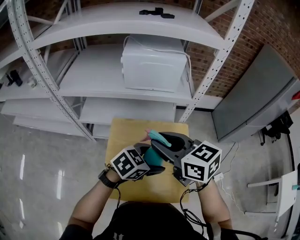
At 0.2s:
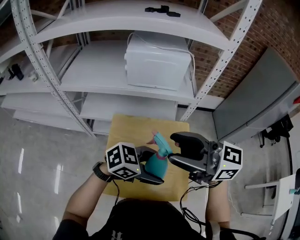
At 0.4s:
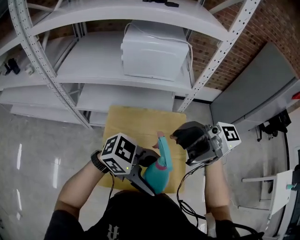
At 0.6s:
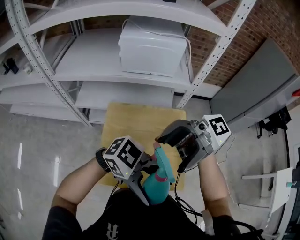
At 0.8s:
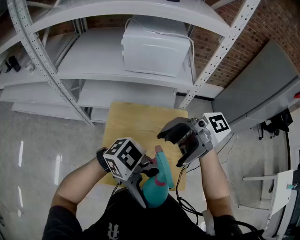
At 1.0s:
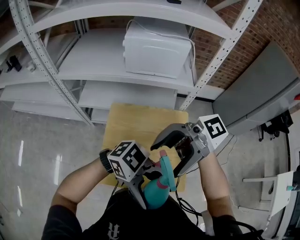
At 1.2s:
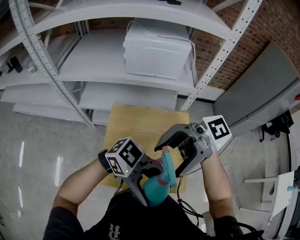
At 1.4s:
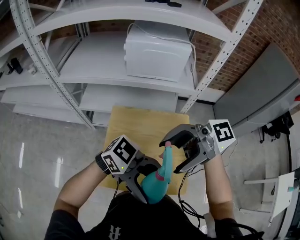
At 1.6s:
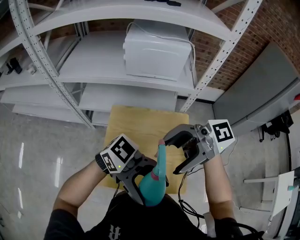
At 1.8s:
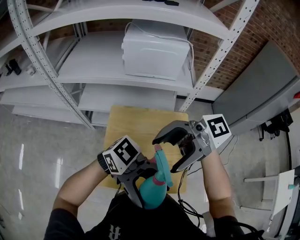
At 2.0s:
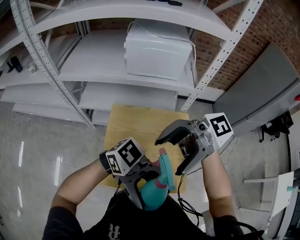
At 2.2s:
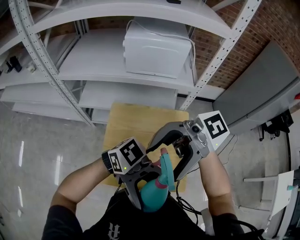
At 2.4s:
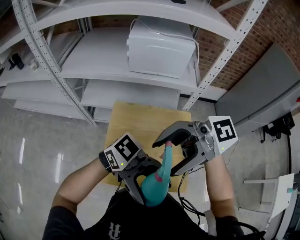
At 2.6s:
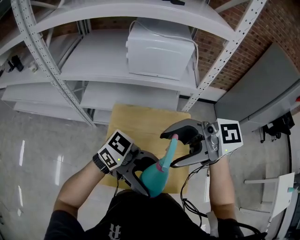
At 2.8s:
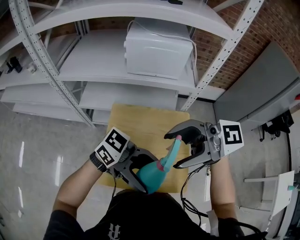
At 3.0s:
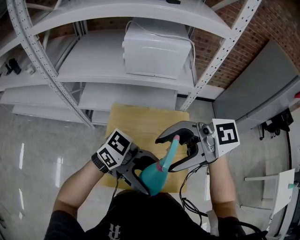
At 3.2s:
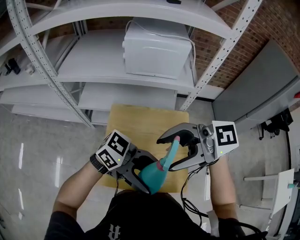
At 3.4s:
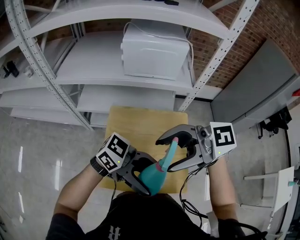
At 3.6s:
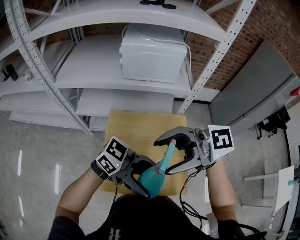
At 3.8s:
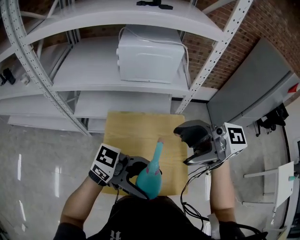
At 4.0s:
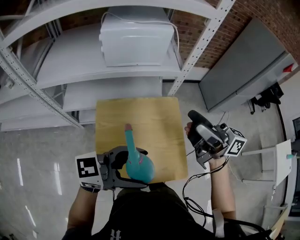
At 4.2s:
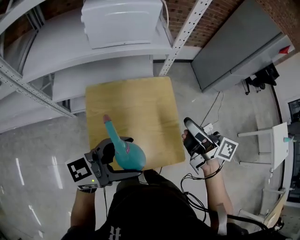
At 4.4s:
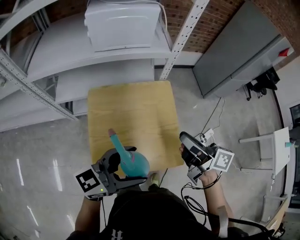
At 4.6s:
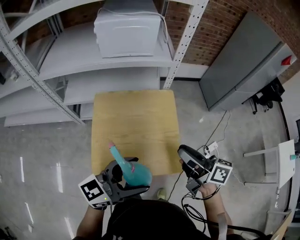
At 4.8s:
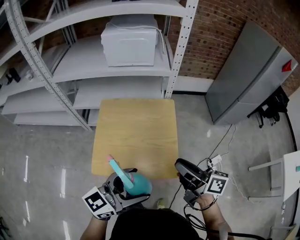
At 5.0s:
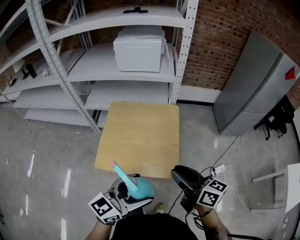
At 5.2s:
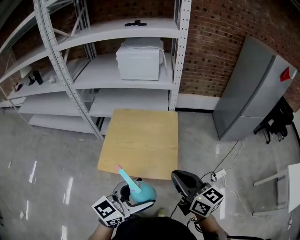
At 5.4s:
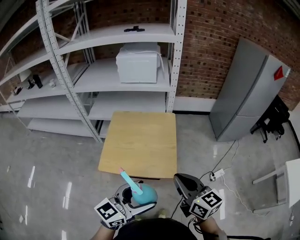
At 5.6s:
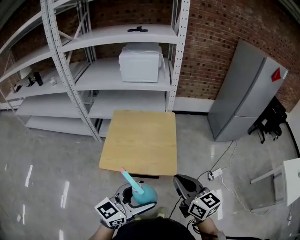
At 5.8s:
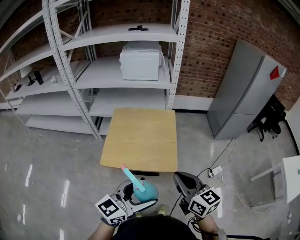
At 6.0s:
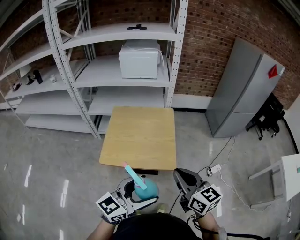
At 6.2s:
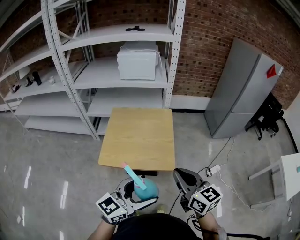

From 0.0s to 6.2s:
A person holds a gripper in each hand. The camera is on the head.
From 0.0s to 1.6s: The right gripper changes place by approximately 15 cm, rotates approximately 70 degrees, and opens up, while the left gripper changes place by approximately 20 cm, and tips its fingers upward by approximately 40 degrees.
From 1.6s to 3.2s: The left gripper moves approximately 5 cm.
From 3.2s to 4.6s: The left gripper shifts by some 5 cm, and turns by about 50 degrees; the right gripper ends up some 25 cm from where it was, rotates roughly 80 degrees, and closes.
From 4.6s to 6.2s: The left gripper shifts approximately 30 cm backward and to the right, while the right gripper heads backward, covering about 25 cm, swivels about 40 degrees, and closes its fingers.

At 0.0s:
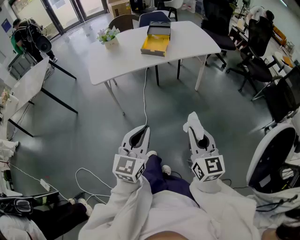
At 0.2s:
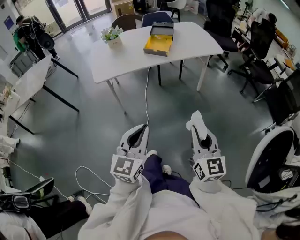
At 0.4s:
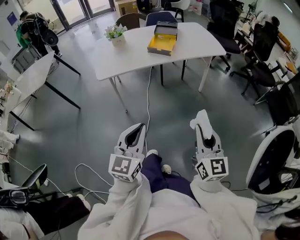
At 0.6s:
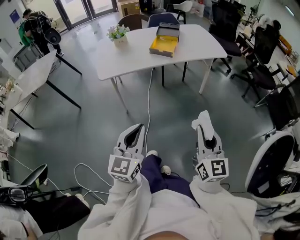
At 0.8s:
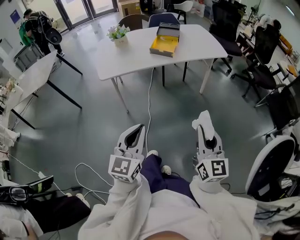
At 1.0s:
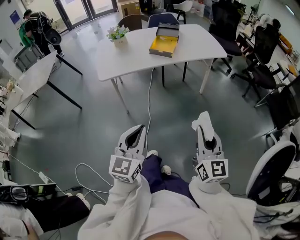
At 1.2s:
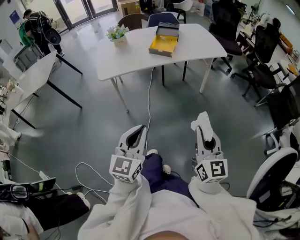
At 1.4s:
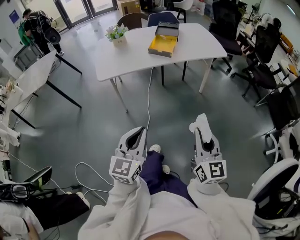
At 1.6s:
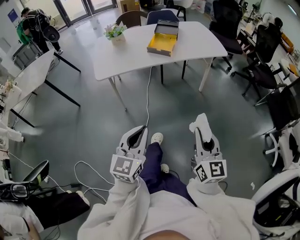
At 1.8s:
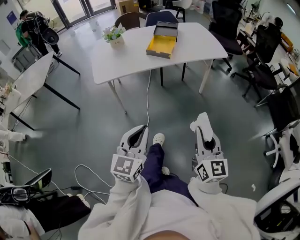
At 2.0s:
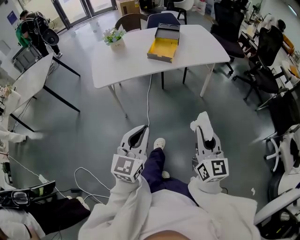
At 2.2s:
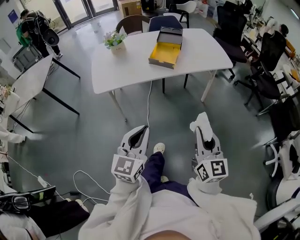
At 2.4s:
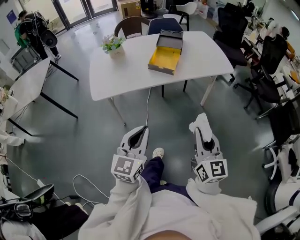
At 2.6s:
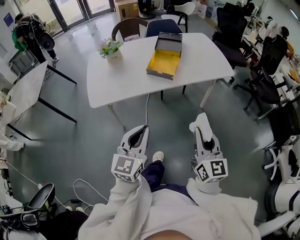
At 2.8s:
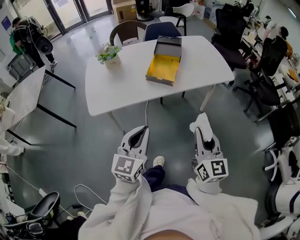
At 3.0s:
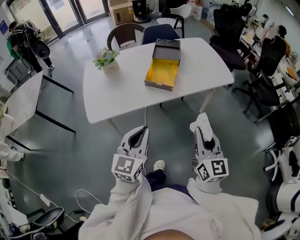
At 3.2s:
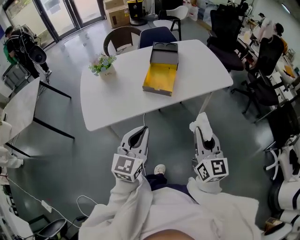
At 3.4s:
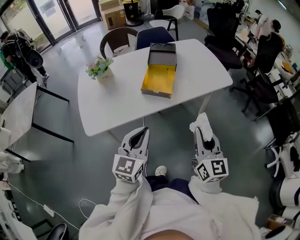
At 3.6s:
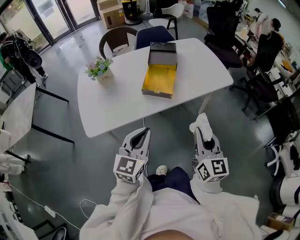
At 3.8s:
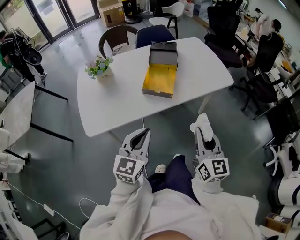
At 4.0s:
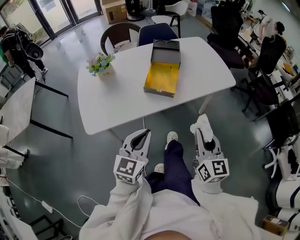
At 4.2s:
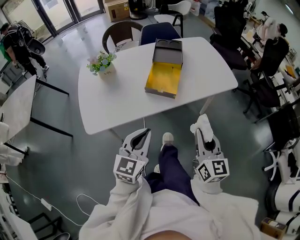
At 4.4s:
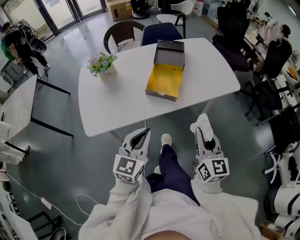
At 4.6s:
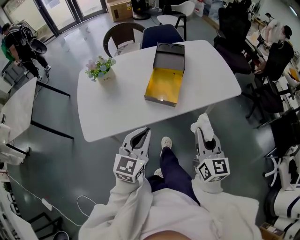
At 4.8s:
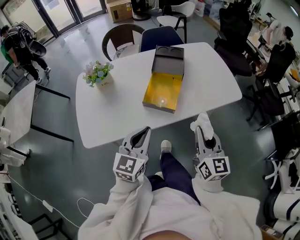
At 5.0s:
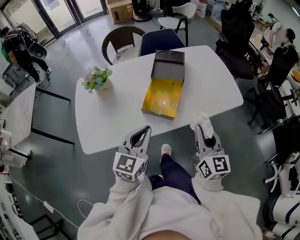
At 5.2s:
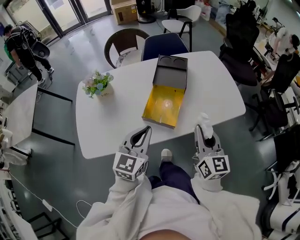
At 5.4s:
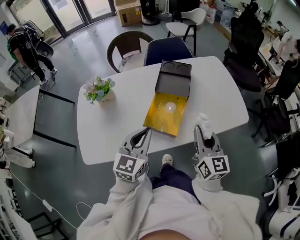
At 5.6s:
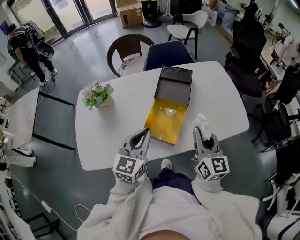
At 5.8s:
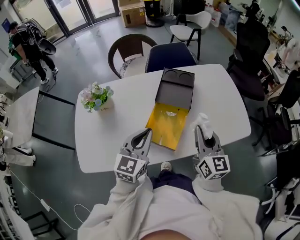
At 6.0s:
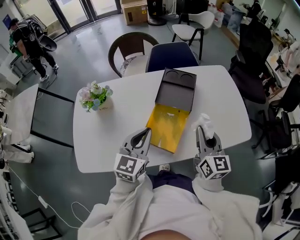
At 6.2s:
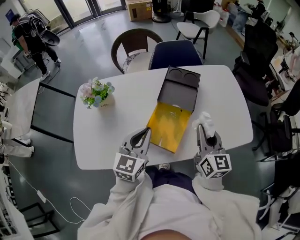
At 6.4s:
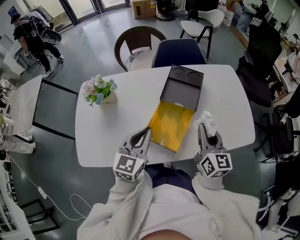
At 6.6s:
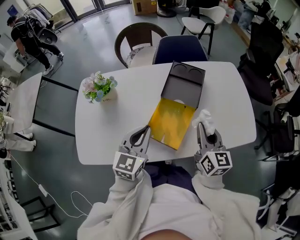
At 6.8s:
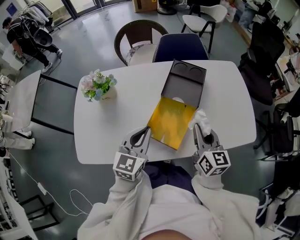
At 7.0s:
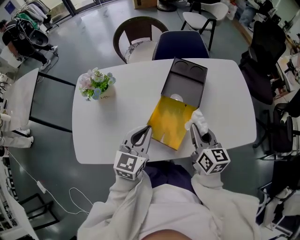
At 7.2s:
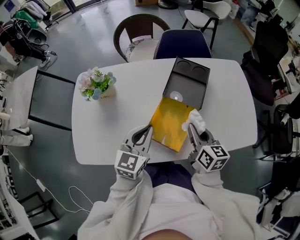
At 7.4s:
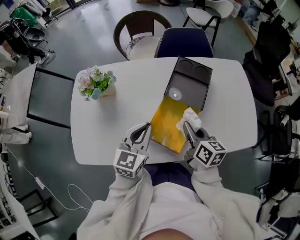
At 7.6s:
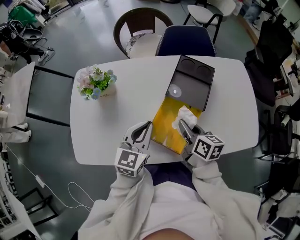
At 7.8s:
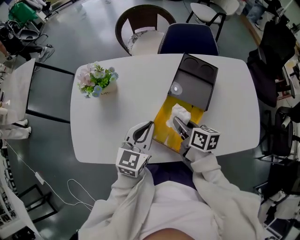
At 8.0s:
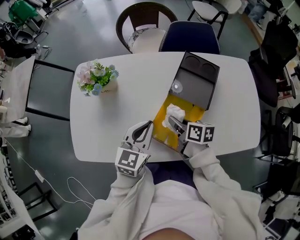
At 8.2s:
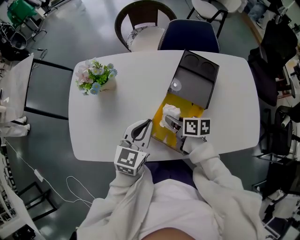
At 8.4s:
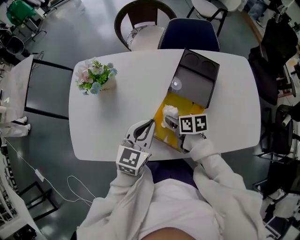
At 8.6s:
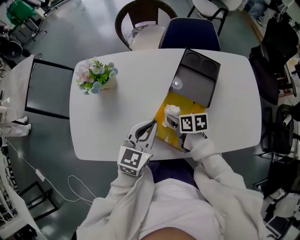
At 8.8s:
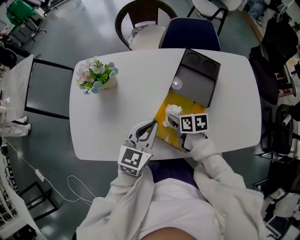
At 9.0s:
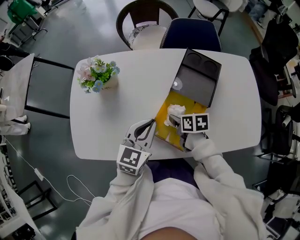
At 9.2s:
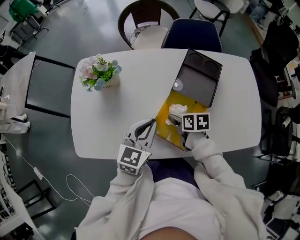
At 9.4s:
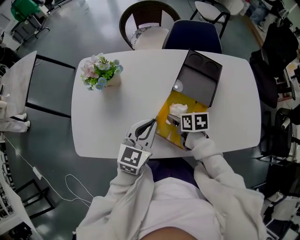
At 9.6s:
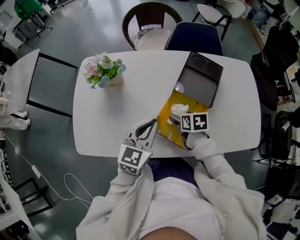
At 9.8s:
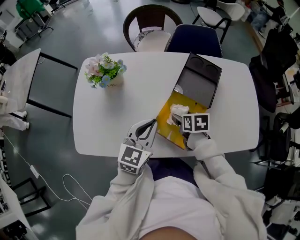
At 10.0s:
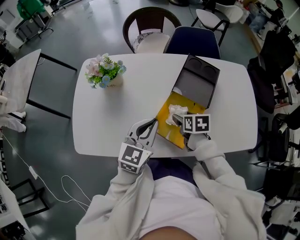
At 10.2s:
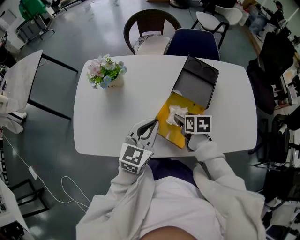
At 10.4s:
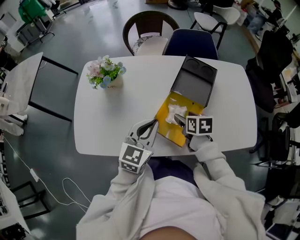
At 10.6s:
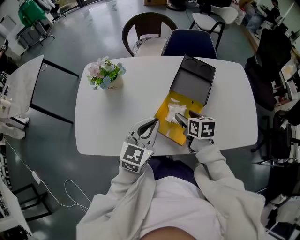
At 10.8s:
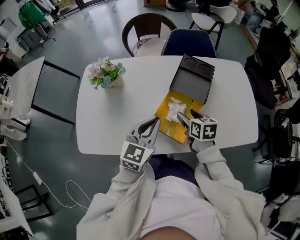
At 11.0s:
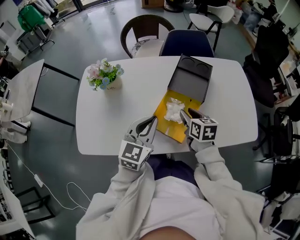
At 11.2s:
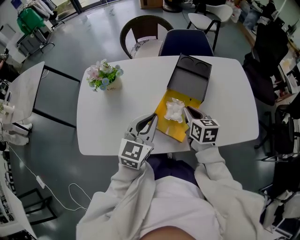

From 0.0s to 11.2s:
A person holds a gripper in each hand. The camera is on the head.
From 0.0s to 1.6s: The grippers stay close to where they were, moving slightly.
From 1.6s to 3.2s: Both grippers move forward, roughly 30 cm.
From 3.2s to 4.8s: The grippers both shift forward by roughly 15 cm.
From 4.8s to 6.4s: Both grippers travel together forward, approximately 20 cm.
From 6.4s to 8.0s: The right gripper heads downward, to the left and forward, covering approximately 20 cm, and swivels about 50 degrees. Meanwhile the left gripper travels downward by some 5 cm.
From 8.0s to 9.6s: The right gripper rotates roughly 30 degrees, and opens.
From 9.6s to 11.2s: The right gripper shifts about 10 cm upward, turns by roughly 30 degrees, and closes up.

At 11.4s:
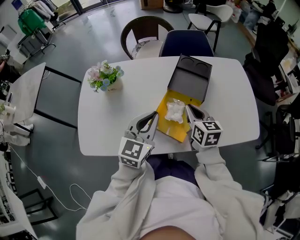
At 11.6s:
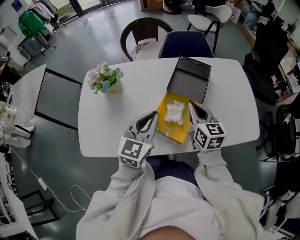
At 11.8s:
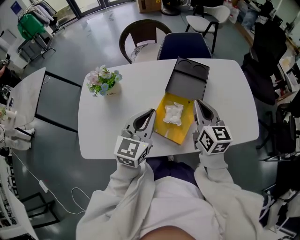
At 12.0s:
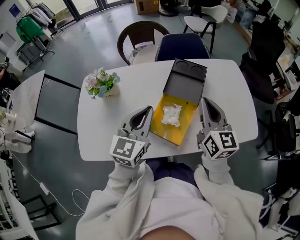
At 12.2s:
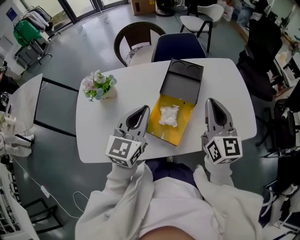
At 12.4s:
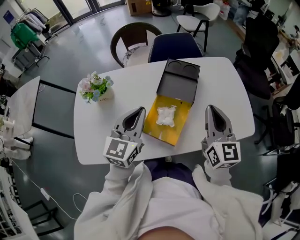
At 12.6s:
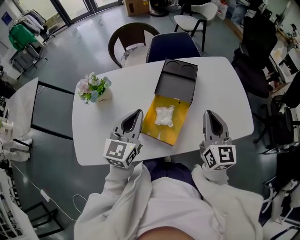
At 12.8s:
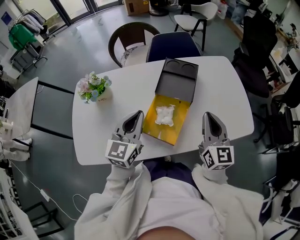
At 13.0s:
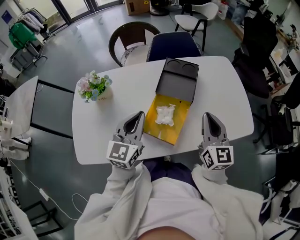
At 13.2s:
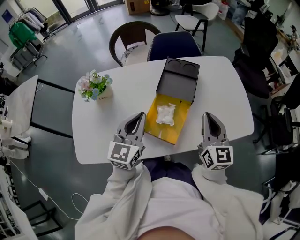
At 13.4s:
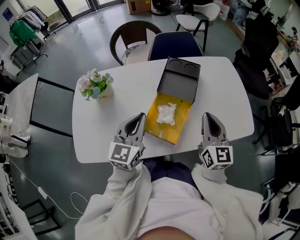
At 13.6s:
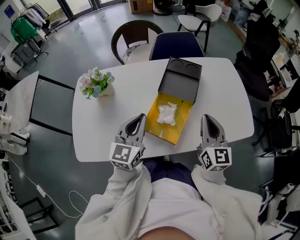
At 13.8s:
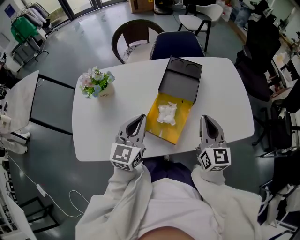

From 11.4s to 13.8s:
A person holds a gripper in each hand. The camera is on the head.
From 11.4s to 12.6s: The right gripper moves upward and to the right, some 15 cm, and changes its angle by approximately 30 degrees.
From 12.6s to 13.8s: The grippers stay close to where they were, moving slightly.

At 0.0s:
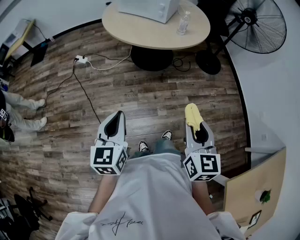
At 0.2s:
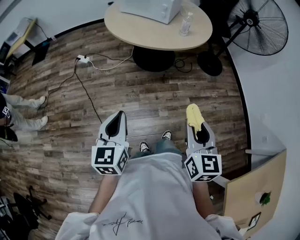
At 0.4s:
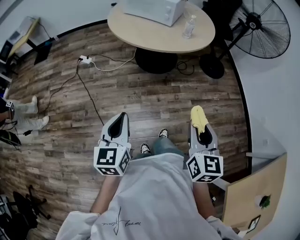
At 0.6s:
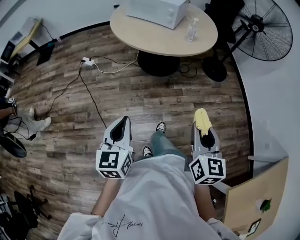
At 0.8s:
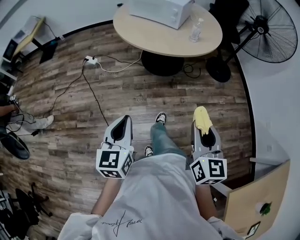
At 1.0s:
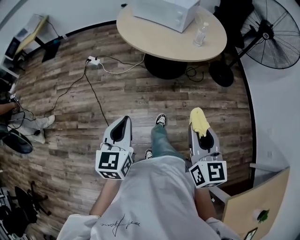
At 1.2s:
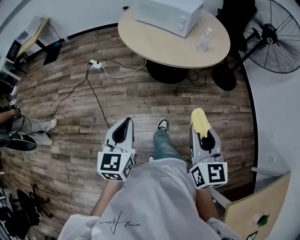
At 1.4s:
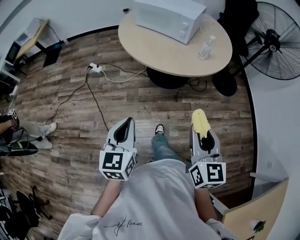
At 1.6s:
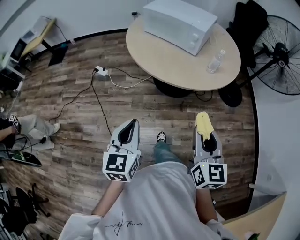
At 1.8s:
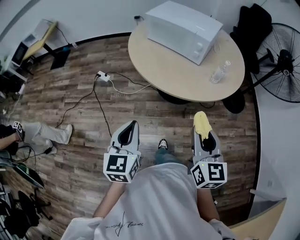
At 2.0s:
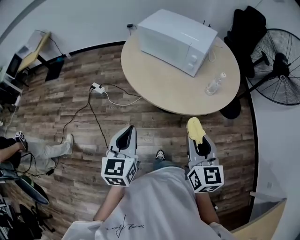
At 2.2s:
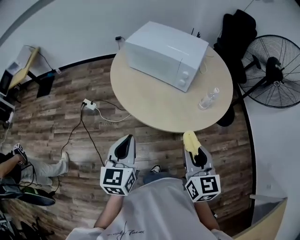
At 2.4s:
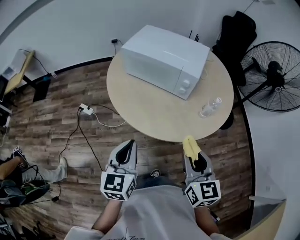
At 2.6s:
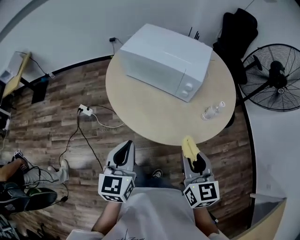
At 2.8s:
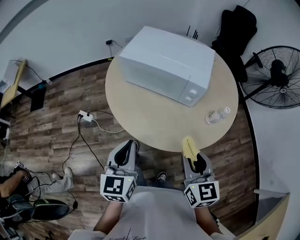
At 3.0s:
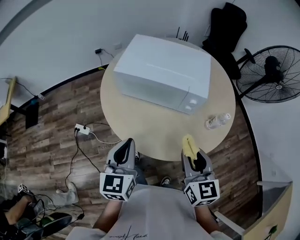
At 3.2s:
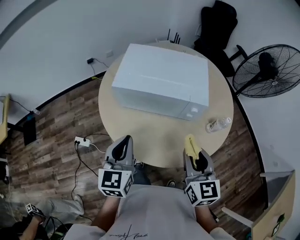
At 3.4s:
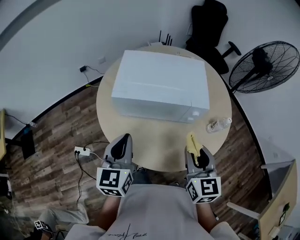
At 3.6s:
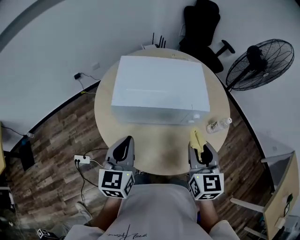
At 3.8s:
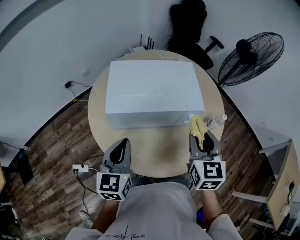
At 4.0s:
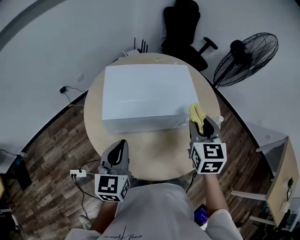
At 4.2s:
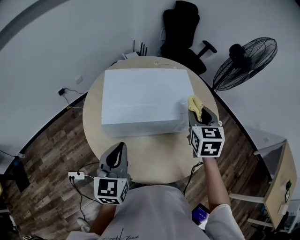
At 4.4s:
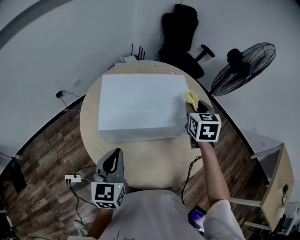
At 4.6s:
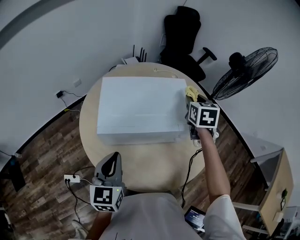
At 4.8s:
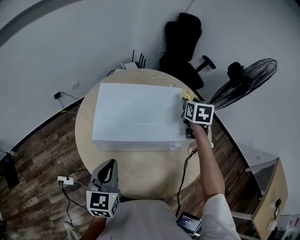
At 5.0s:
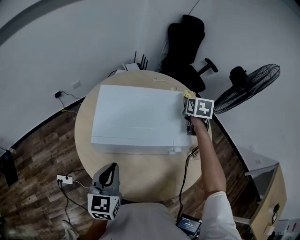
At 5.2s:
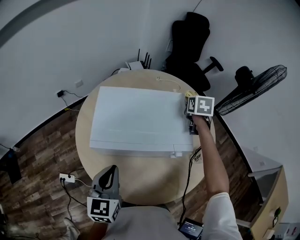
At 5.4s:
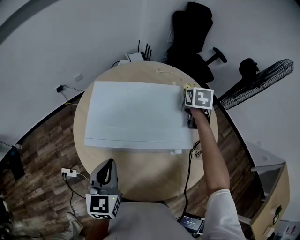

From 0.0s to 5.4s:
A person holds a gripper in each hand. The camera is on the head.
From 0.0s to 1.4s: Both grippers travel together forward, roughly 15 cm.
From 1.4s to 2.8s: Both grippers are carried forward, some 40 cm.
From 2.8s to 4.0s: The right gripper changes place by approximately 30 cm, and swivels about 40 degrees. Meanwhile the left gripper changes place by roughly 30 cm, and rotates roughly 30 degrees.
From 4.0s to 5.4s: The right gripper goes roughly 35 cm forward, and turns by some 30 degrees, while the left gripper is displaced forward by about 5 cm.
